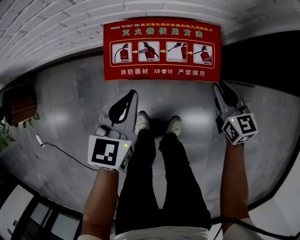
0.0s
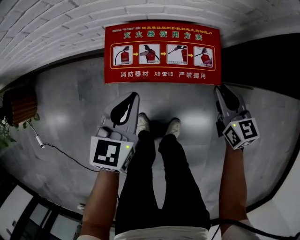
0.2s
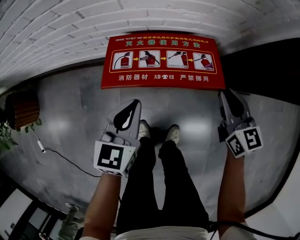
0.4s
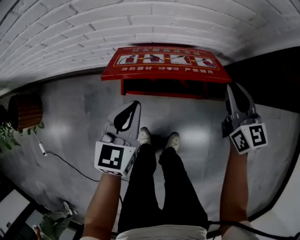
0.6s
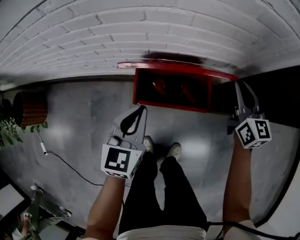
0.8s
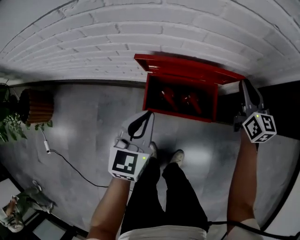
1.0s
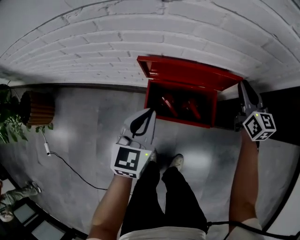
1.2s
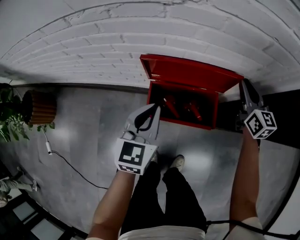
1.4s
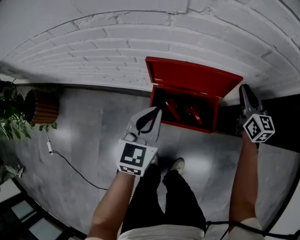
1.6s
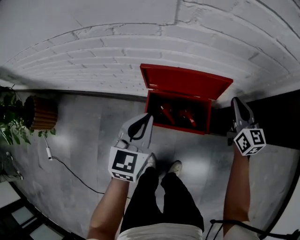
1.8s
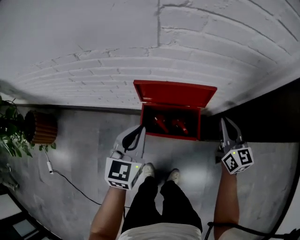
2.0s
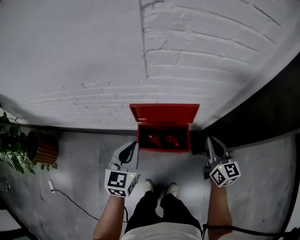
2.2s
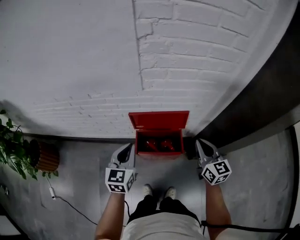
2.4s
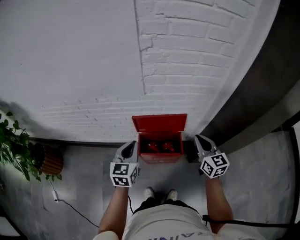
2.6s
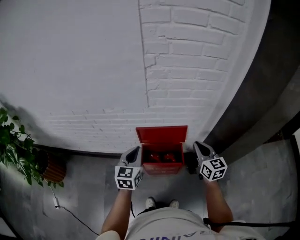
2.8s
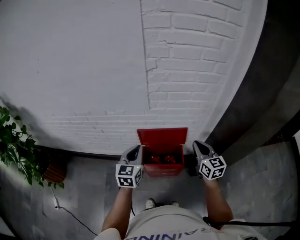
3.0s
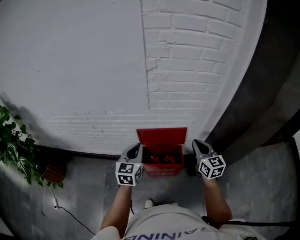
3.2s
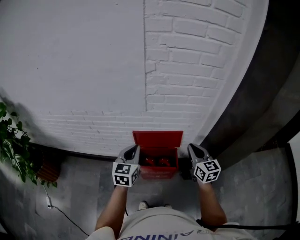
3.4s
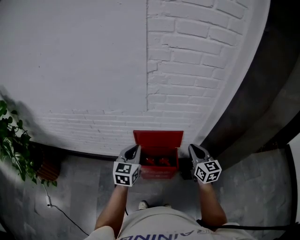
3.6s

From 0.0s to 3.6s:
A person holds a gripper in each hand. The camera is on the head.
From 0.0s to 1.8s: The grippers both shift upward and forward by approximately 25 cm.
From 1.8s to 3.6s: The left gripper is displaced upward by roughly 20 cm. Meanwhile the right gripper moves upward and backward, approximately 25 cm.

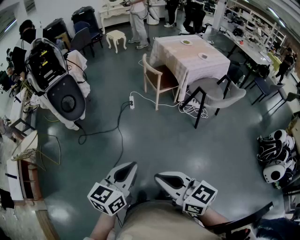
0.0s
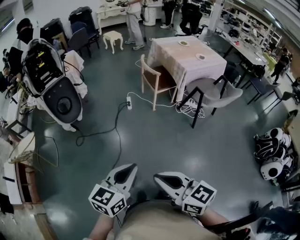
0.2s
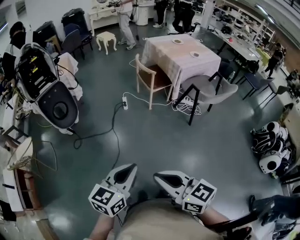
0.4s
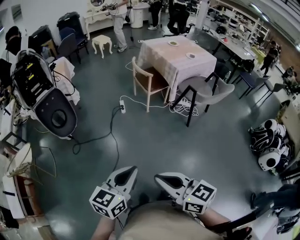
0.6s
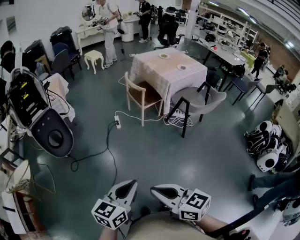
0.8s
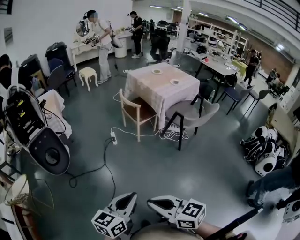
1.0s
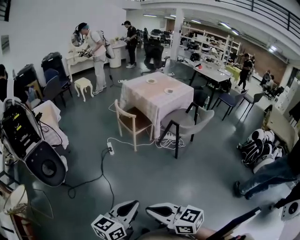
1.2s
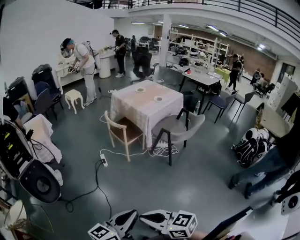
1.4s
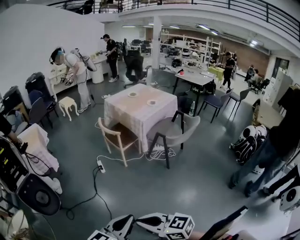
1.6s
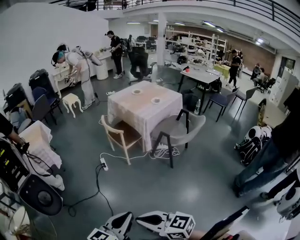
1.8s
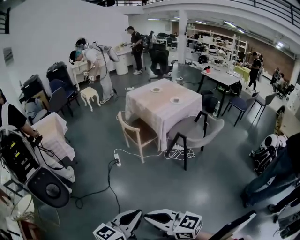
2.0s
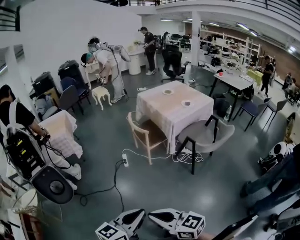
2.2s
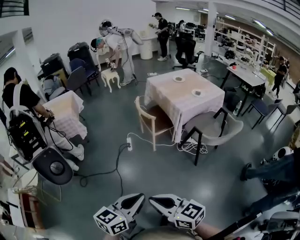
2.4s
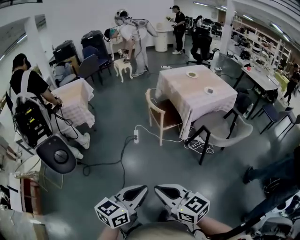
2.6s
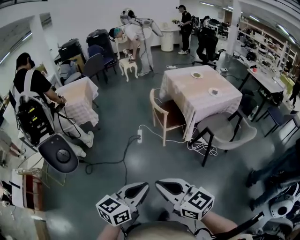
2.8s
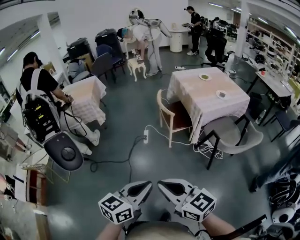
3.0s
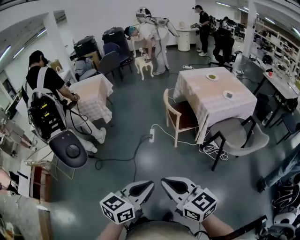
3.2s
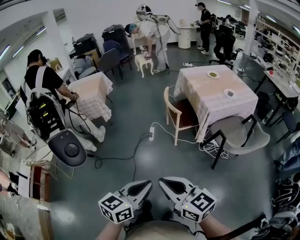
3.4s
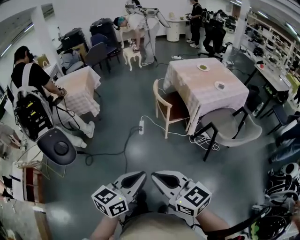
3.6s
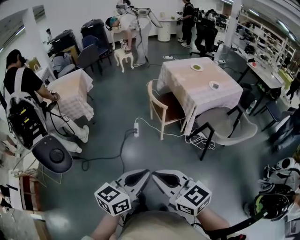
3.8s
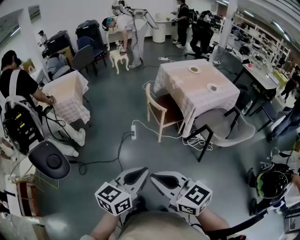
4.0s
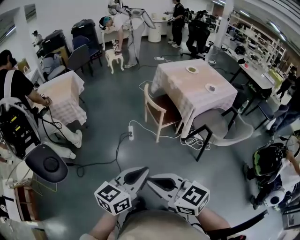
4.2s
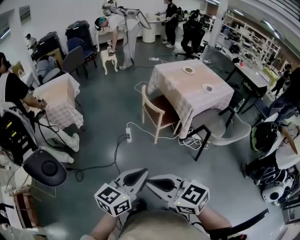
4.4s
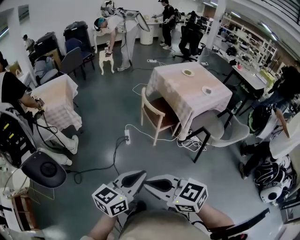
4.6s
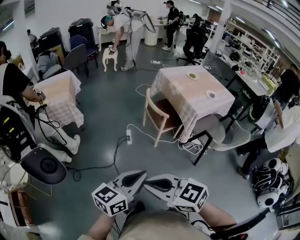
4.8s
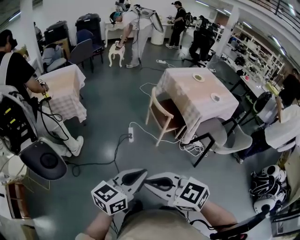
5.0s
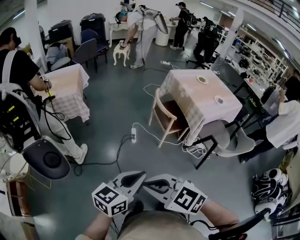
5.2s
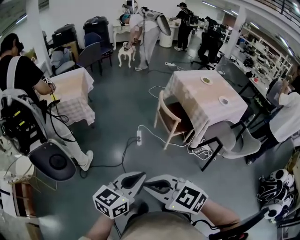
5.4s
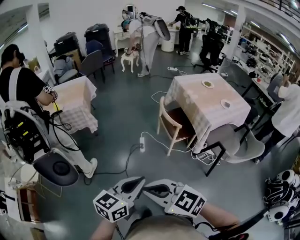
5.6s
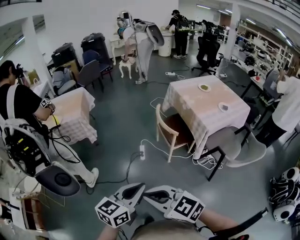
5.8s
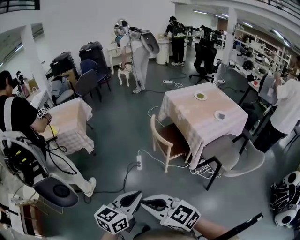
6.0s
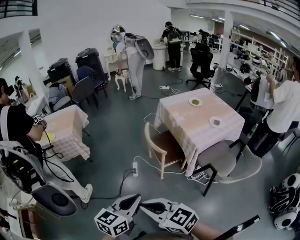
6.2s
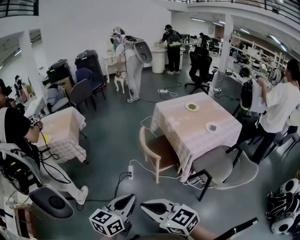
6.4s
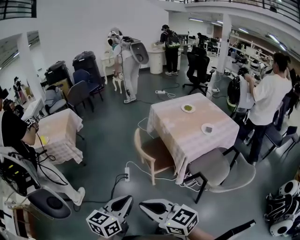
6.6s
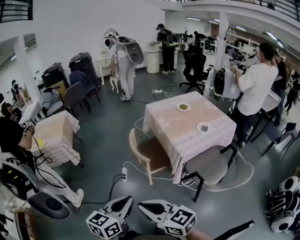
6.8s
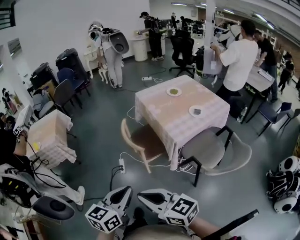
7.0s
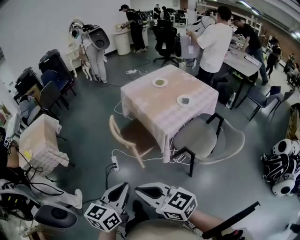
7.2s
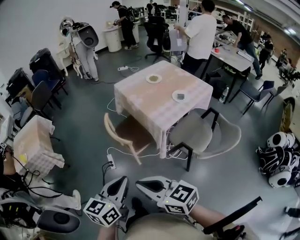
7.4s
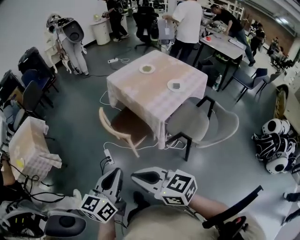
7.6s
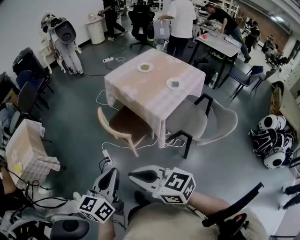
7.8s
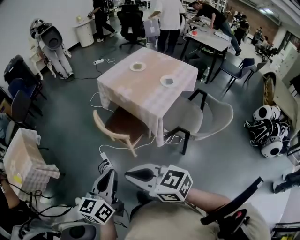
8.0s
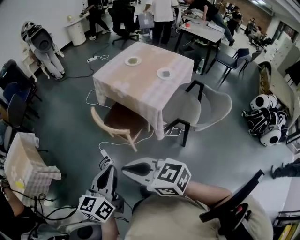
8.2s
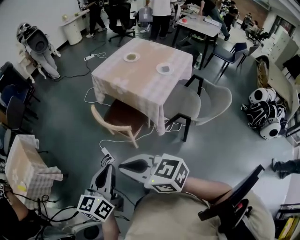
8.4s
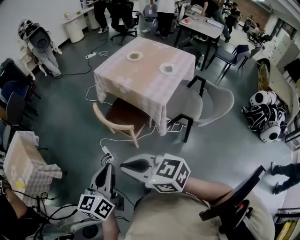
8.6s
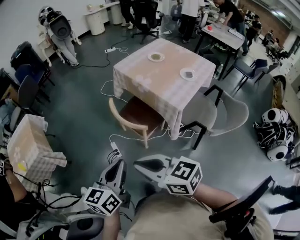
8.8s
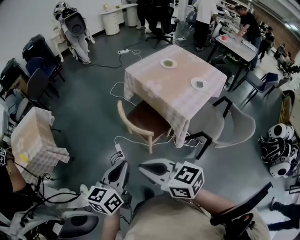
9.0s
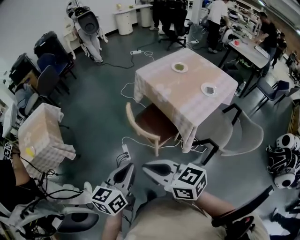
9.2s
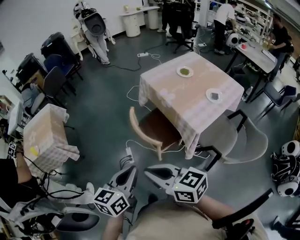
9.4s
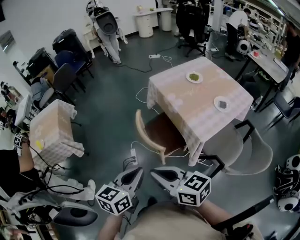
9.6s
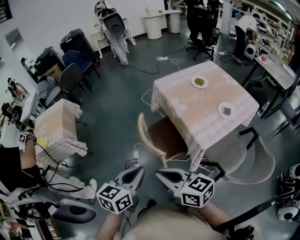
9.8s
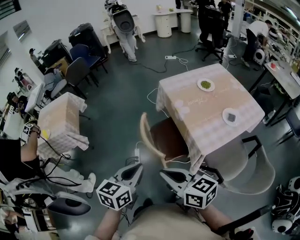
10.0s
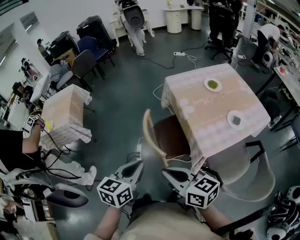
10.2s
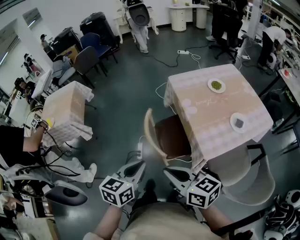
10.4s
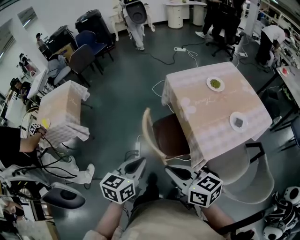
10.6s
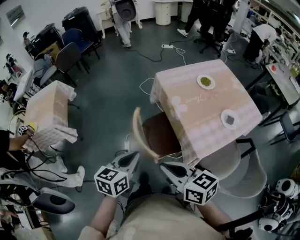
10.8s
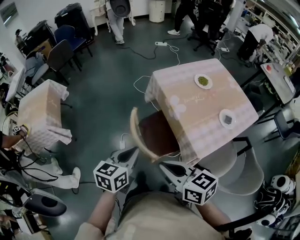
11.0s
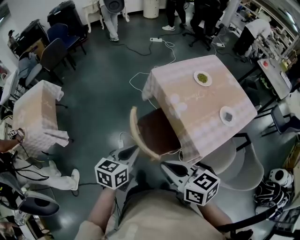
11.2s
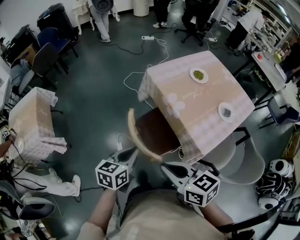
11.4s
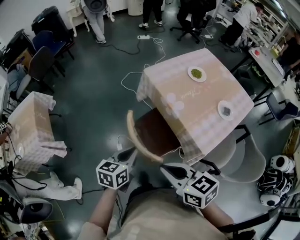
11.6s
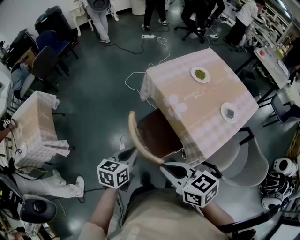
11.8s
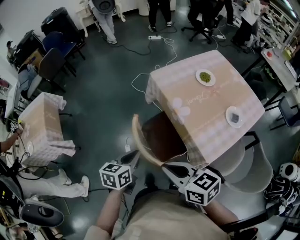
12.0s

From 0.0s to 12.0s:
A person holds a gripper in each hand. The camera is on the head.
From 0.0s to 1.6s: The left gripper swivels about 30 degrees, while the right gripper ends up some 5 cm from where it was.
From 1.6s to 3.0s: Both grippers move forward and to the right, some 20 cm. The left gripper turns by some 20 degrees.
From 3.0s to 4.4s: The left gripper shifts some 15 cm forward and to the left; the right gripper moves to the left and forward, about 15 cm.
From 4.4s to 6.0s: The grippers both shift forward by some 10 cm. The left gripper moves approximately 10 cm to the left and comes back; the right gripper moves approximately 10 cm to the left and comes back.
From 6.0s to 7.6s: The right gripper travels to the right and forward by about 20 cm, and swivels about 30 degrees. The left gripper heads forward and to the right, covering approximately 20 cm.
From 7.6s to 9.0s: The grippers both shift to the left and forward by approximately 15 cm.
From 9.0s to 10.4s: Both grippers travel together to the right and forward, about 20 cm. The left gripper turns by approximately 20 degrees.
From 10.4s to 12.0s: The left gripper goes roughly 20 cm forward and downward; the right gripper heads forward, covering about 15 cm.

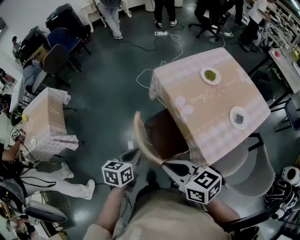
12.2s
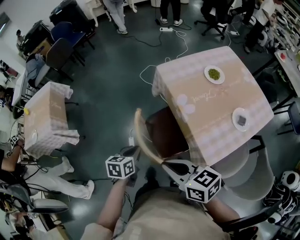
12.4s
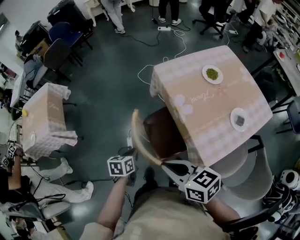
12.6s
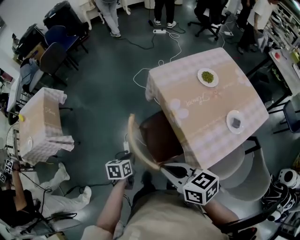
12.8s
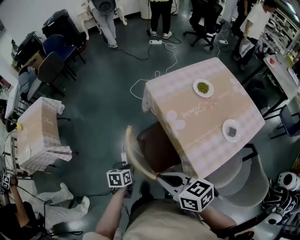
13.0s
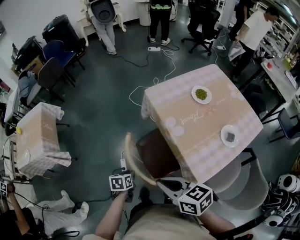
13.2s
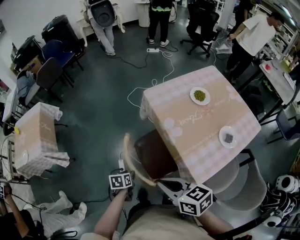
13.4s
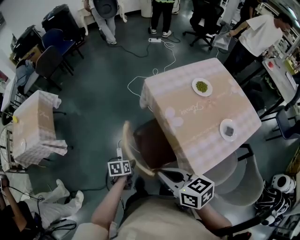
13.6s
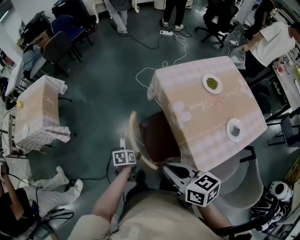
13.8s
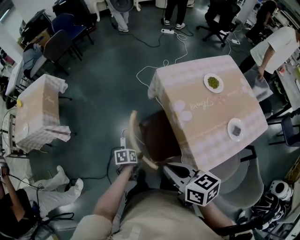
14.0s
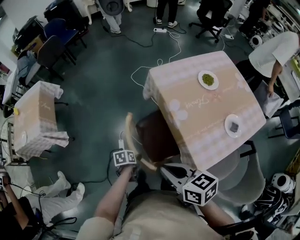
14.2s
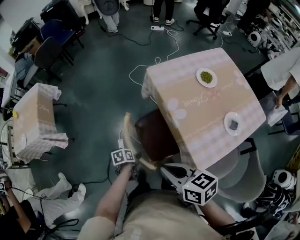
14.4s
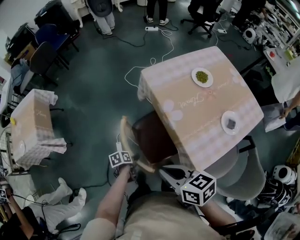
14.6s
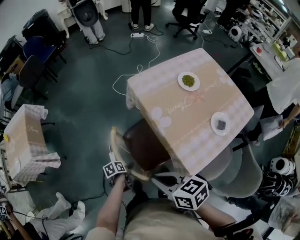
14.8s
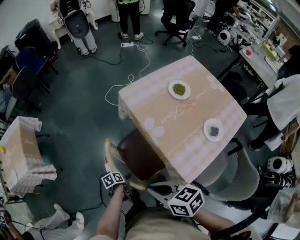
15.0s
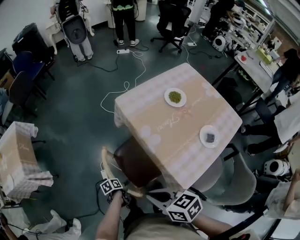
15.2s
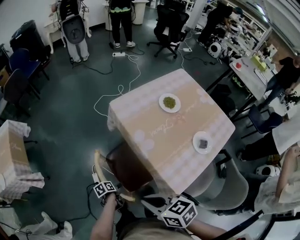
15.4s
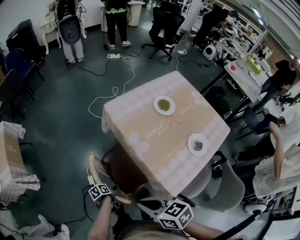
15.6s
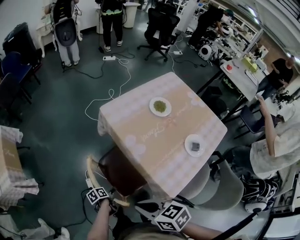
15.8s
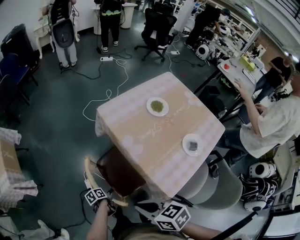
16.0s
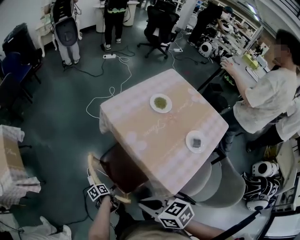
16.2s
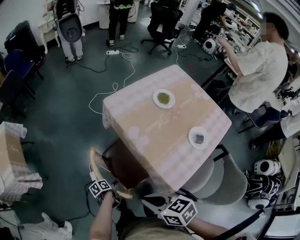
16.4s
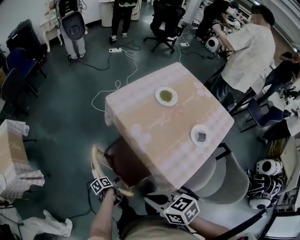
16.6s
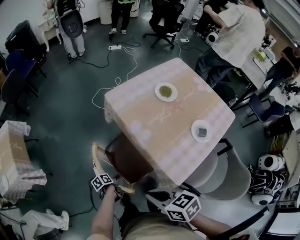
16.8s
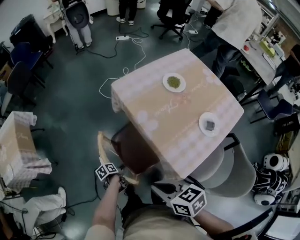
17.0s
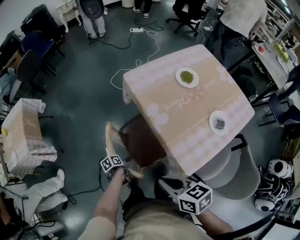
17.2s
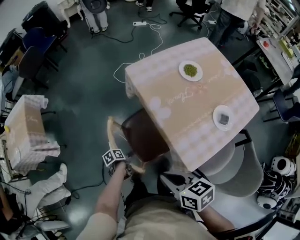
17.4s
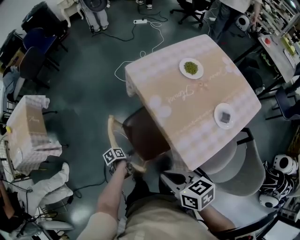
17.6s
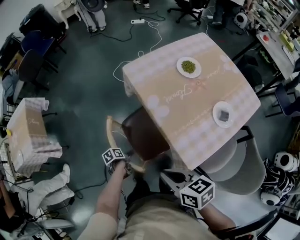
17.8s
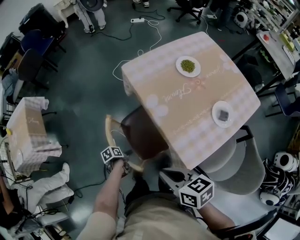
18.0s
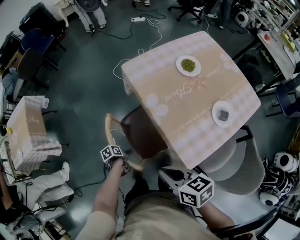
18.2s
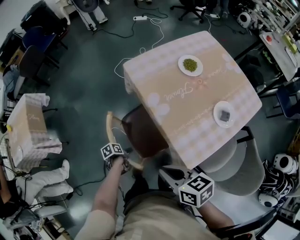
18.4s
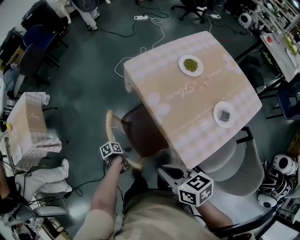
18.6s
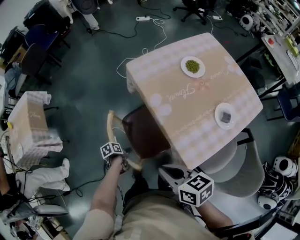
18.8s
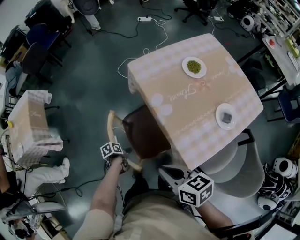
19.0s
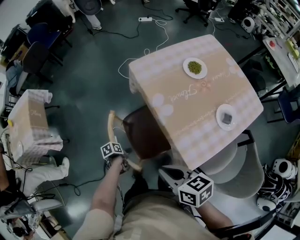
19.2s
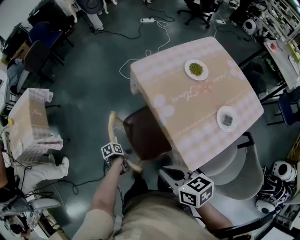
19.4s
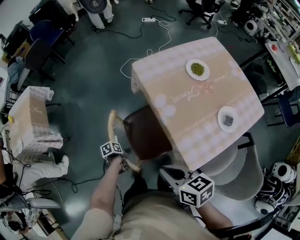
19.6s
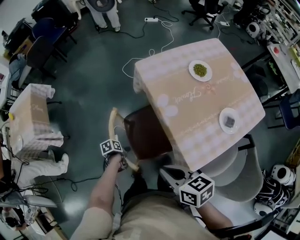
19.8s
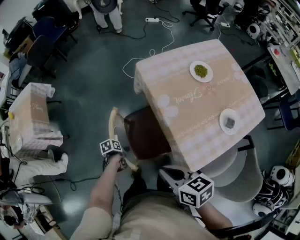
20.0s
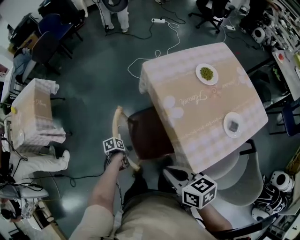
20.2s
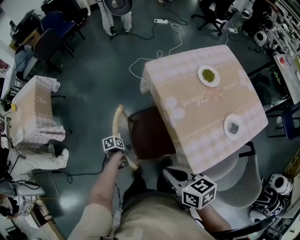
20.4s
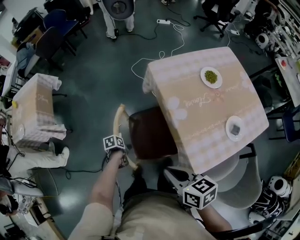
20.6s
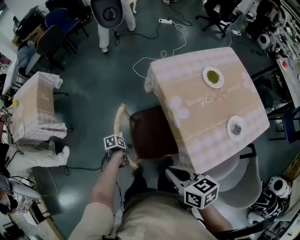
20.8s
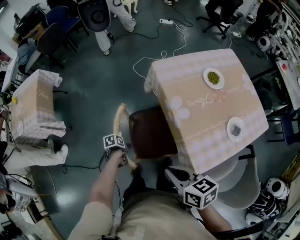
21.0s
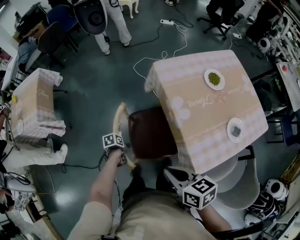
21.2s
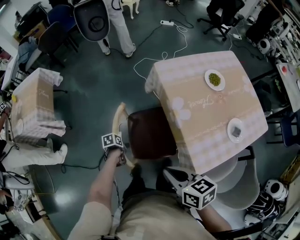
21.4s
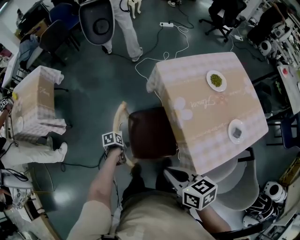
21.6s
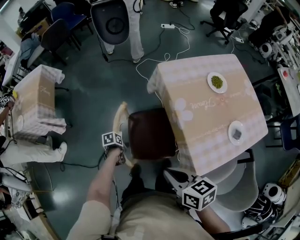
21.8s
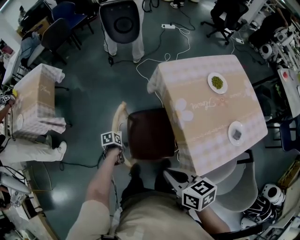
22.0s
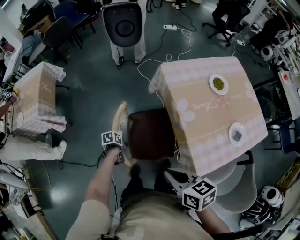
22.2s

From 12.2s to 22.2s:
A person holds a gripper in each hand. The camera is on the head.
From 12.2s to 13.6s: The left gripper moves downward, some 20 cm, changes its angle by approximately 30 degrees, and opens its fingers.
From 13.6s to 15.0s: The left gripper heads downward, covering approximately 10 cm, and swivels roughly 20 degrees.
From 15.0s to 16.4s: The grippers make only small movements.
From 16.4s to 19.4s: The grippers stay close to where they were, moving slightly.
From 19.4s to 20.8s: The left gripper travels to the left by approximately 5 cm.
From 20.8s to 22.2s: The grippers make only small movements.
